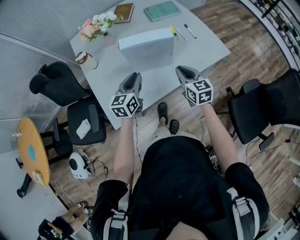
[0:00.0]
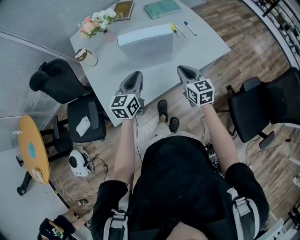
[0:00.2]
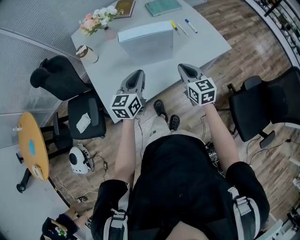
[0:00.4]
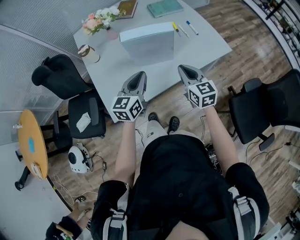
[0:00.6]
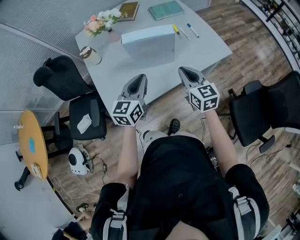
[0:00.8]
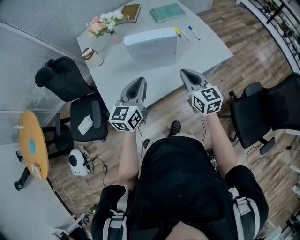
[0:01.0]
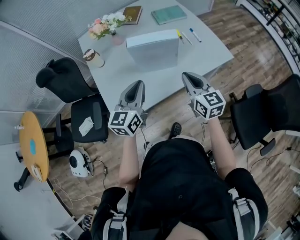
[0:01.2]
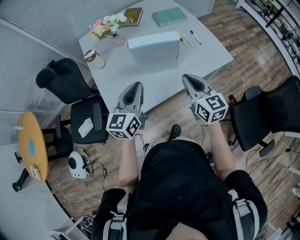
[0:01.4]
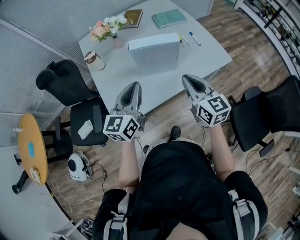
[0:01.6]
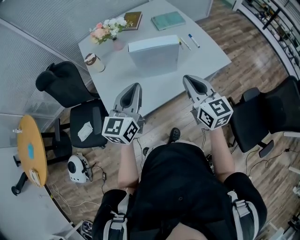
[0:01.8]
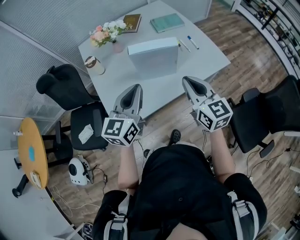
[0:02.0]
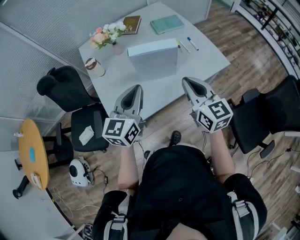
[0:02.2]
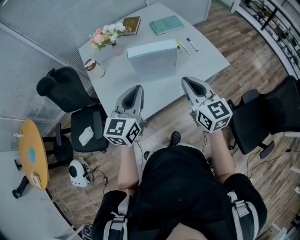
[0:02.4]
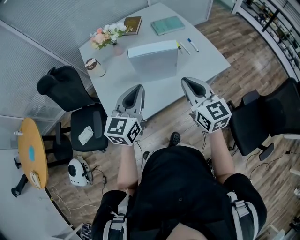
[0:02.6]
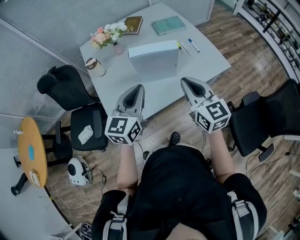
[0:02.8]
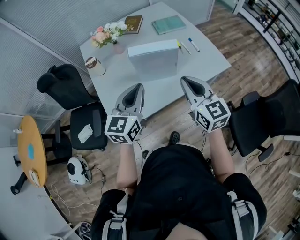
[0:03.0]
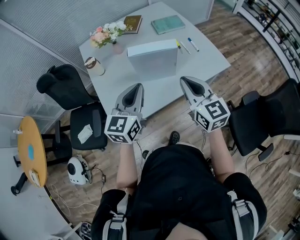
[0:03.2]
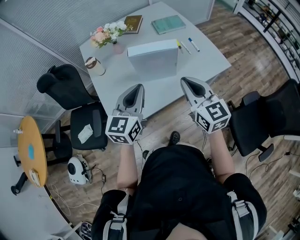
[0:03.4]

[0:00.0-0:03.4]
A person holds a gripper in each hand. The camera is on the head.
0:00.0 to 0:01.6: The grippers both shift upward and backward by roughly 15 cm.
0:01.6 to 0:03.4: There are only small adjustments of the grippers.

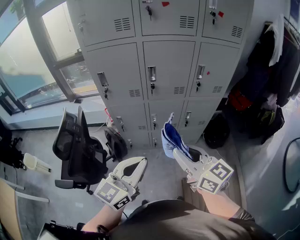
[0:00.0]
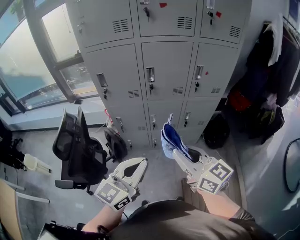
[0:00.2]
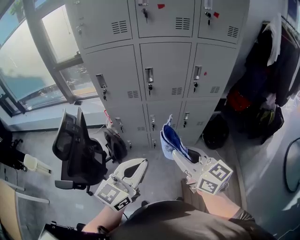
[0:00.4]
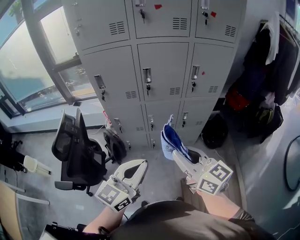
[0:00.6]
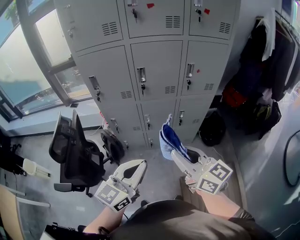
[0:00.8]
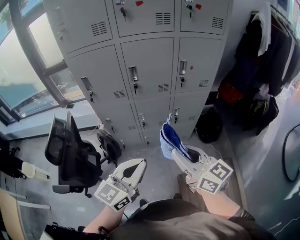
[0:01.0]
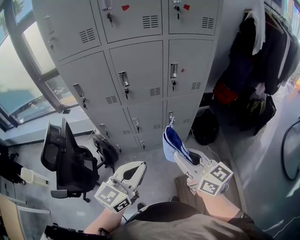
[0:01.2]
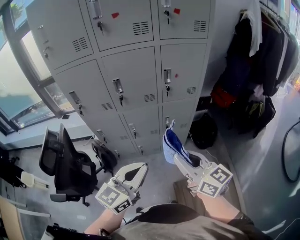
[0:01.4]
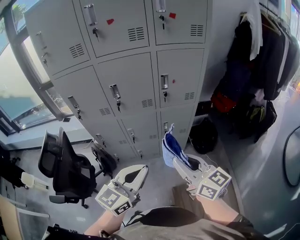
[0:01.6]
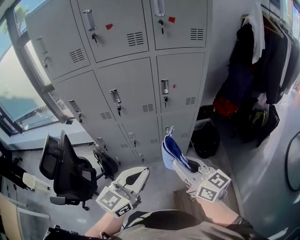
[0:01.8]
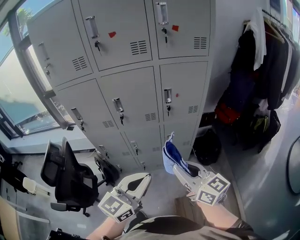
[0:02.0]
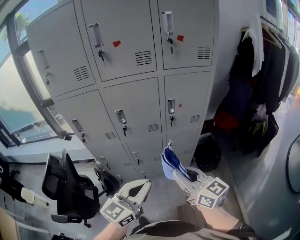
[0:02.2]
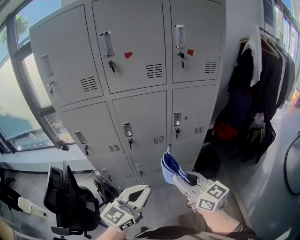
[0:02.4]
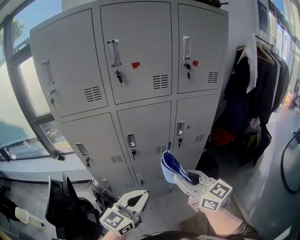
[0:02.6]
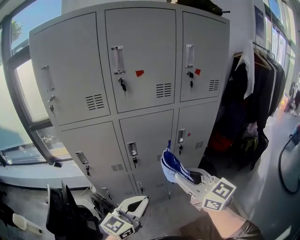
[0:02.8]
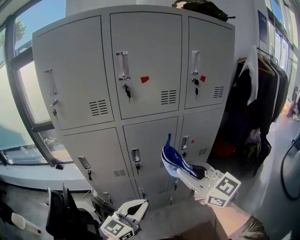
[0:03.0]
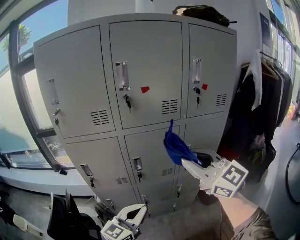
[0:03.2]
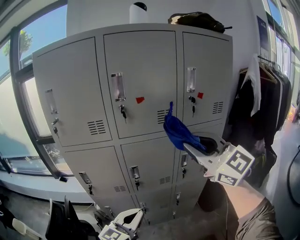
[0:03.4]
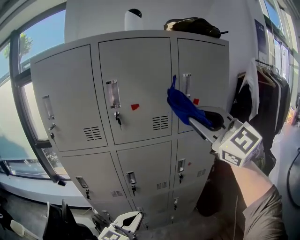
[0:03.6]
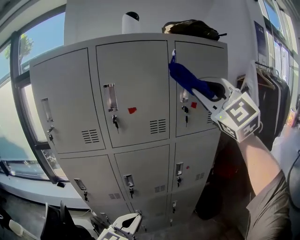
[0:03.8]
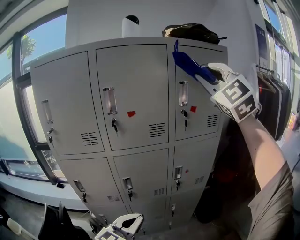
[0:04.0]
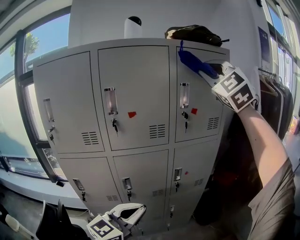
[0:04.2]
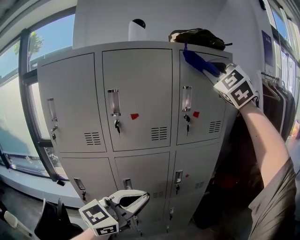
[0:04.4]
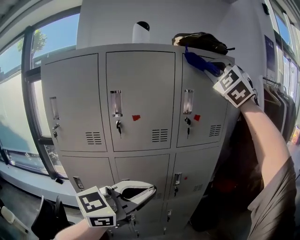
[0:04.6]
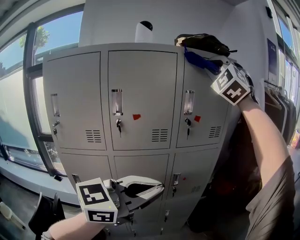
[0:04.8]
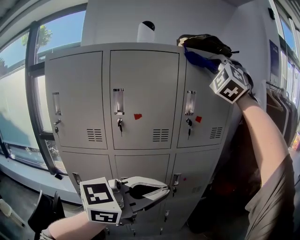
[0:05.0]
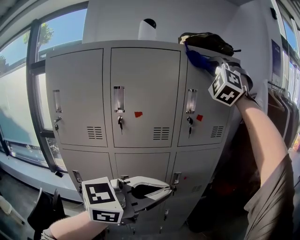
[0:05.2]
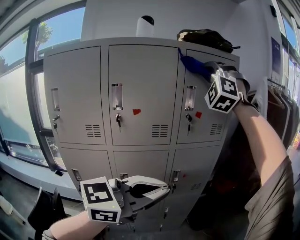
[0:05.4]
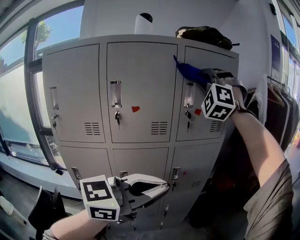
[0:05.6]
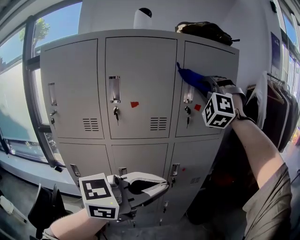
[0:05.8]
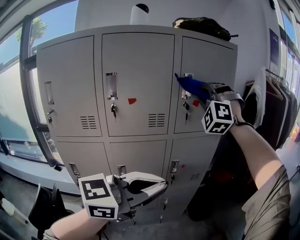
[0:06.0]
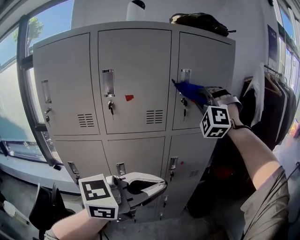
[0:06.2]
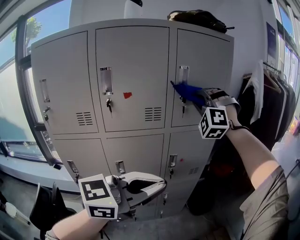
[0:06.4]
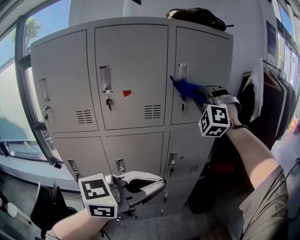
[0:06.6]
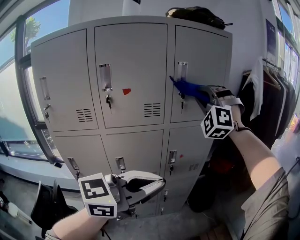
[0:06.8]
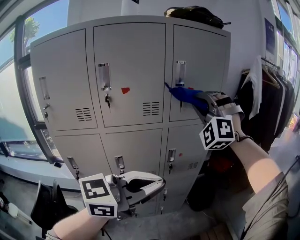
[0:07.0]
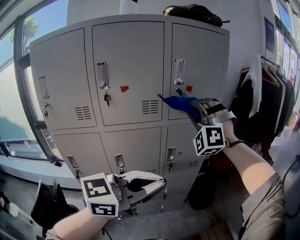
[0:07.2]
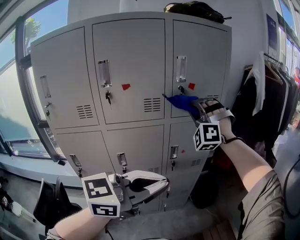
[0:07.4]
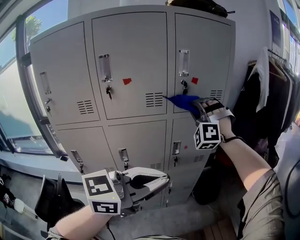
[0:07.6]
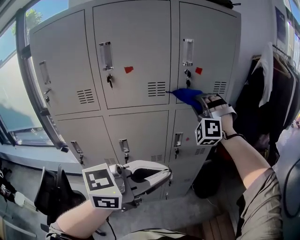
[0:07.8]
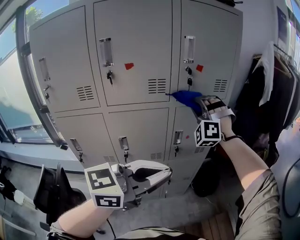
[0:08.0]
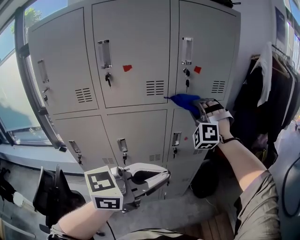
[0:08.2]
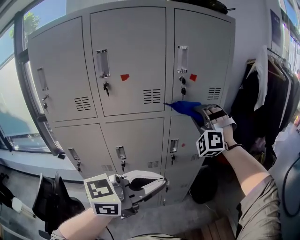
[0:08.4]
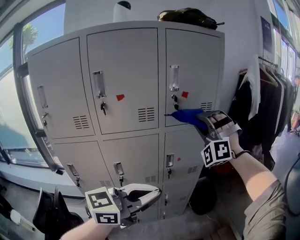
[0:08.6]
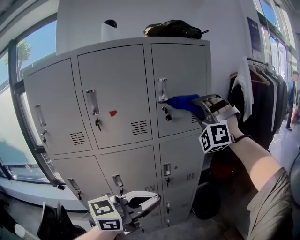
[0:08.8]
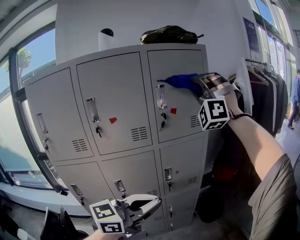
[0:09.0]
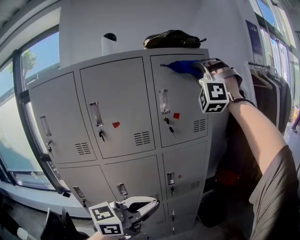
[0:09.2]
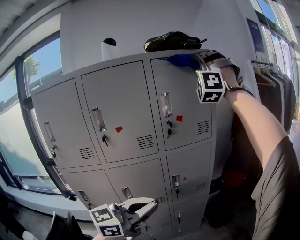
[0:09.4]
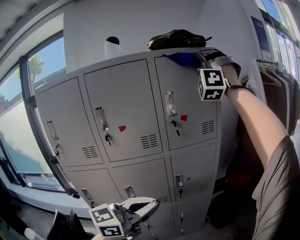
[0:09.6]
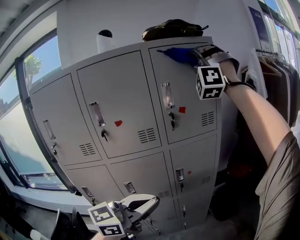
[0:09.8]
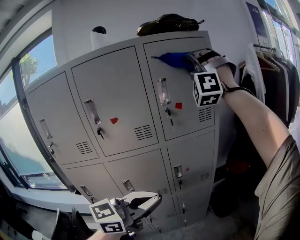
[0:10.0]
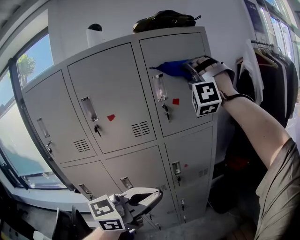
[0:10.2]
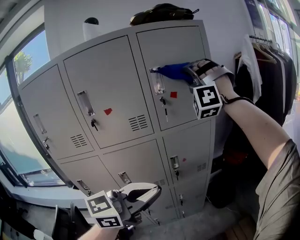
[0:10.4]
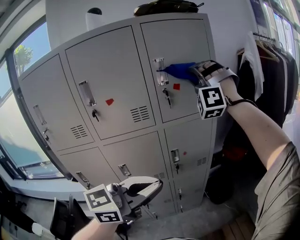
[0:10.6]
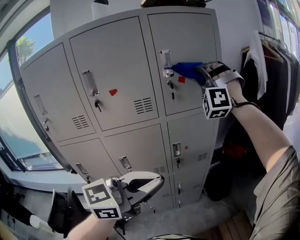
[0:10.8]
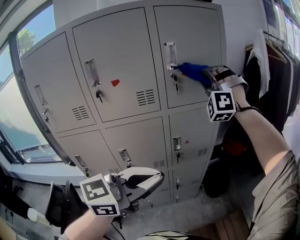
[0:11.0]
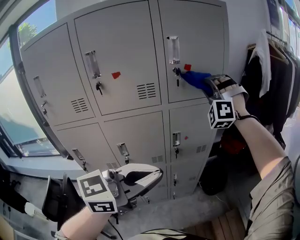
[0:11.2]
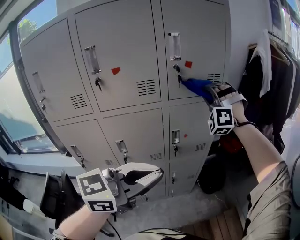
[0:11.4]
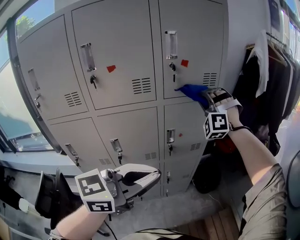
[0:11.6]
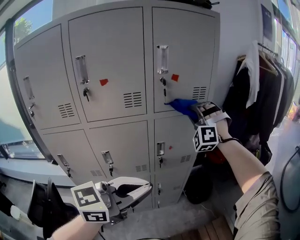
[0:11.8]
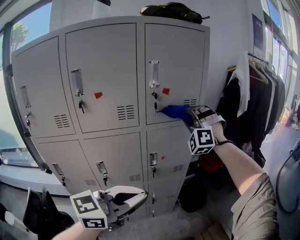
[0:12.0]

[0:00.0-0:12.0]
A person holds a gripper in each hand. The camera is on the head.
0:00.0 to 0:01.6: The left gripper shifts by about 15 cm.
0:01.6 to 0:03.0: The left gripper moves about 20 cm.
0:03.0 to 0:04.4: The left gripper heads upward, covering about 20 cm.
0:04.4 to 0:06.0: The left gripper moves some 10 cm.

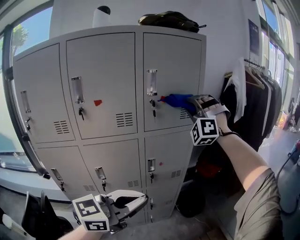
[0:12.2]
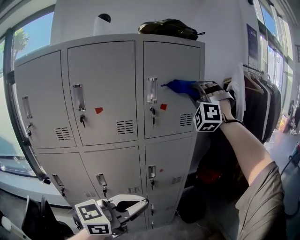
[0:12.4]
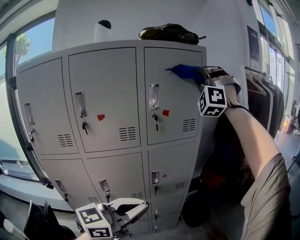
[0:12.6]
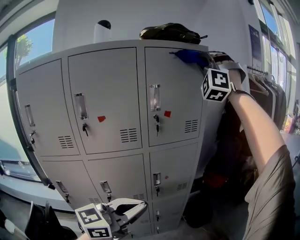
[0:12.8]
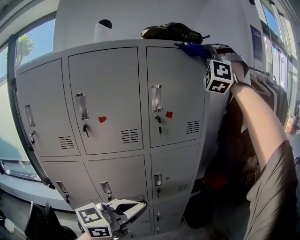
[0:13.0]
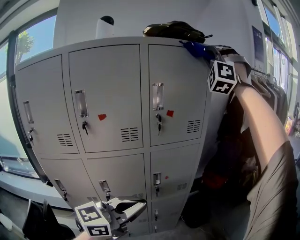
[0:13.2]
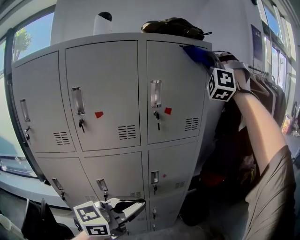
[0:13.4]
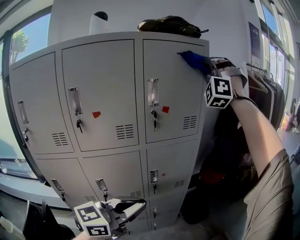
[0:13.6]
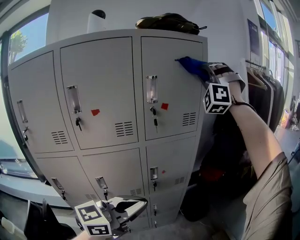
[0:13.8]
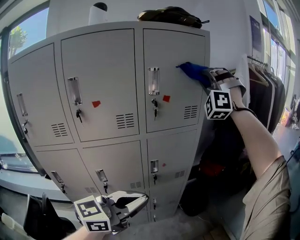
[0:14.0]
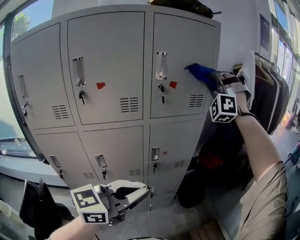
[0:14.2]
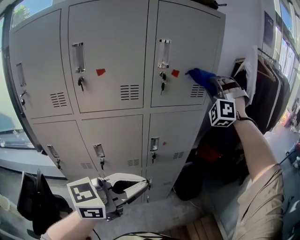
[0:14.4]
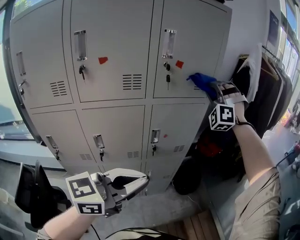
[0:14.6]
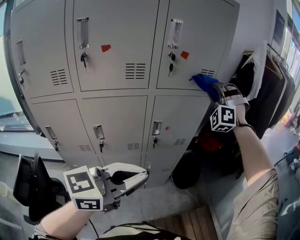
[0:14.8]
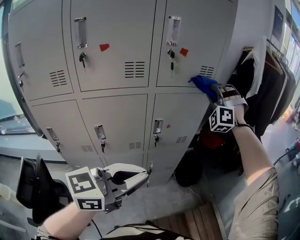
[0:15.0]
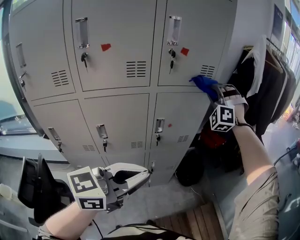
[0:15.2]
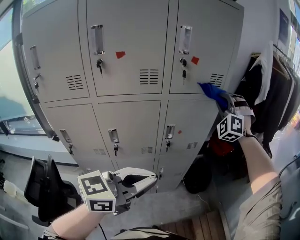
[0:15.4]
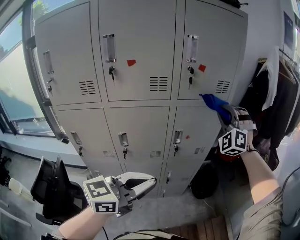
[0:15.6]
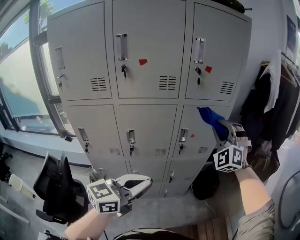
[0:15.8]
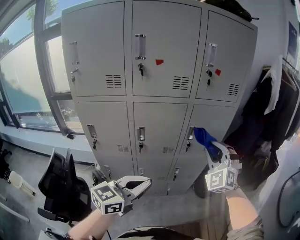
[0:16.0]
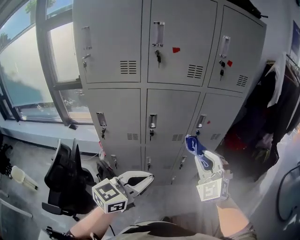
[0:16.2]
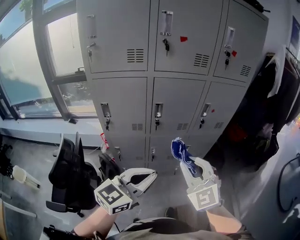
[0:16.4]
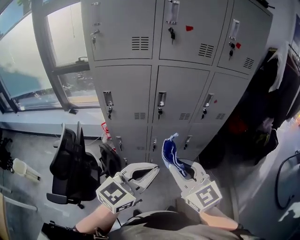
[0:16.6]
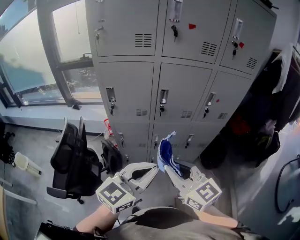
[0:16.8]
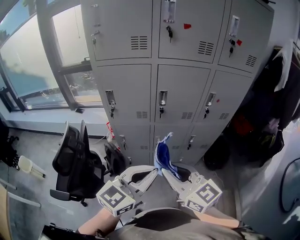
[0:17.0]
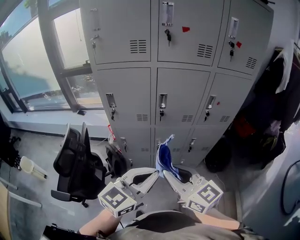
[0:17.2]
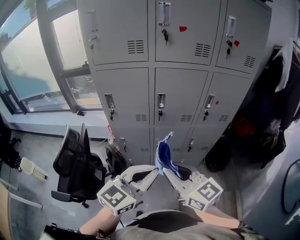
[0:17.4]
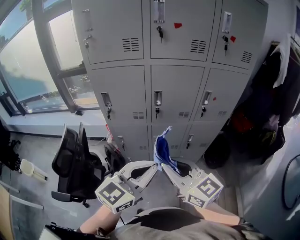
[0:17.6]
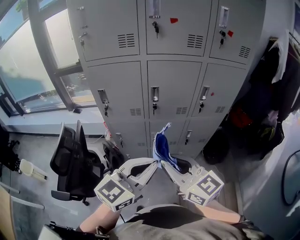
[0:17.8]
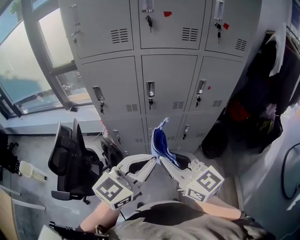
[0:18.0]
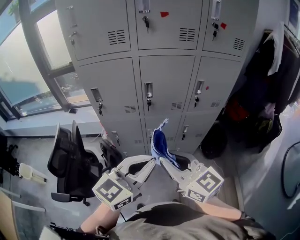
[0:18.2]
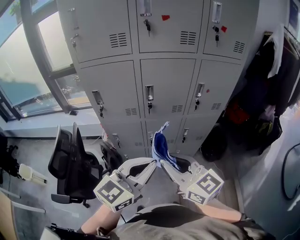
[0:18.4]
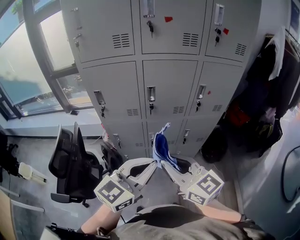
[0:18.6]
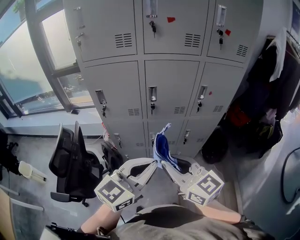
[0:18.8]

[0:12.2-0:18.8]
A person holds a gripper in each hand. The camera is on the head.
0:13.8 to 0:15.4: The left gripper shifts by about 5 cm.
0:15.4 to 0:17.2: The left gripper shifts by about 25 cm, and turns by approximately 20 degrees.

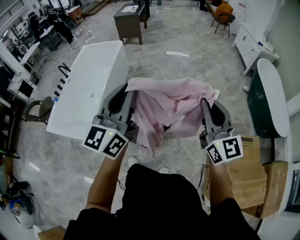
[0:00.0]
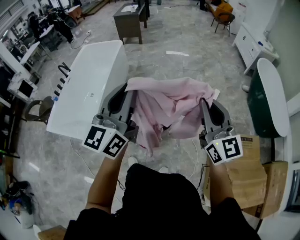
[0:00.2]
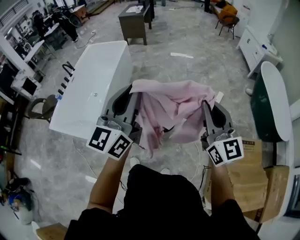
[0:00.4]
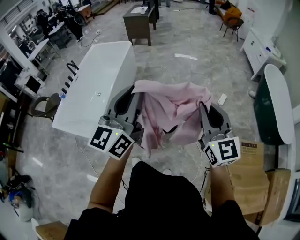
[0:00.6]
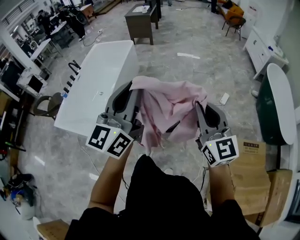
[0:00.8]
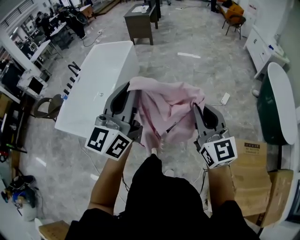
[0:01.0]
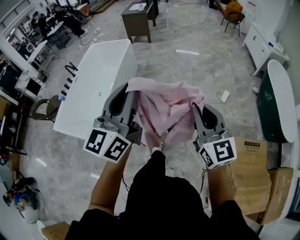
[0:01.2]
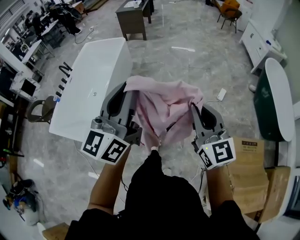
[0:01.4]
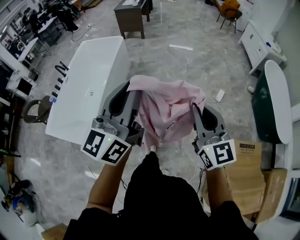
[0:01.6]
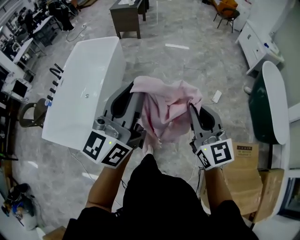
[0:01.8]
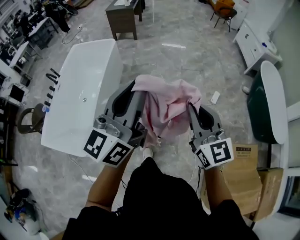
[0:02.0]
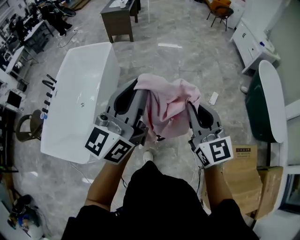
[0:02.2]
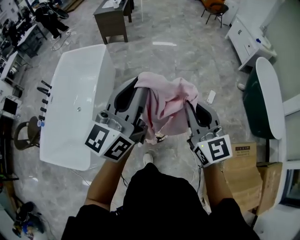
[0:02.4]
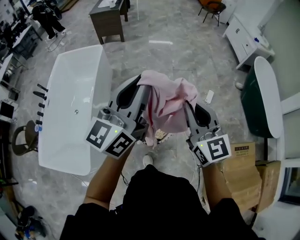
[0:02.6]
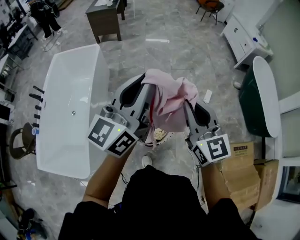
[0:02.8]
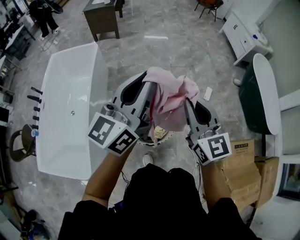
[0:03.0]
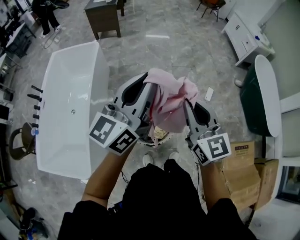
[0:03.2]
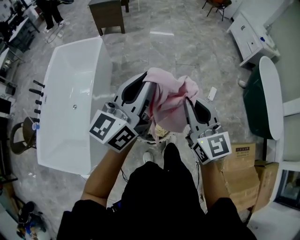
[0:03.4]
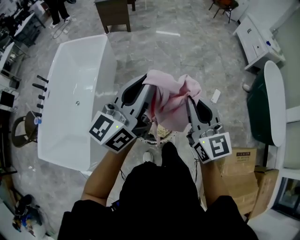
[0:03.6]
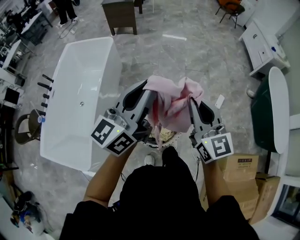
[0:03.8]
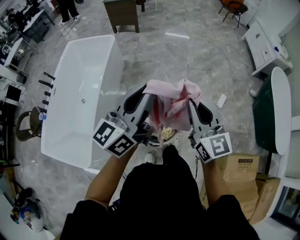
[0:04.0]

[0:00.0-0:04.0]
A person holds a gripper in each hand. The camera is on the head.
0:00.0 to 0:01.4: The two grippers go approximately 5 cm forward.
0:01.4 to 0:02.6: Both grippers move forward, about 30 cm.
0:02.6 to 0:04.0: The left gripper shifts about 10 cm downward and forward, while the right gripper goes about 10 cm forward and downward.
